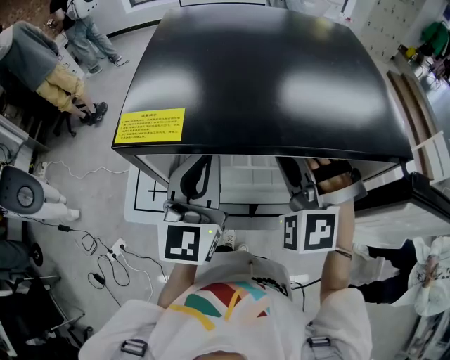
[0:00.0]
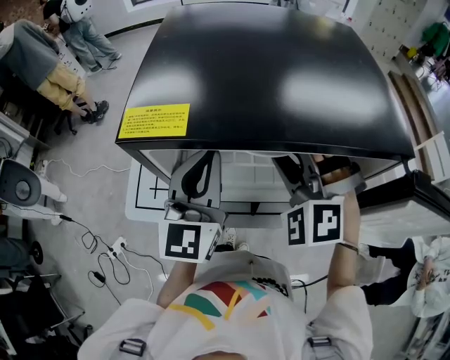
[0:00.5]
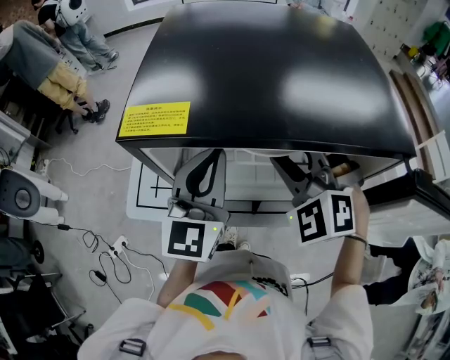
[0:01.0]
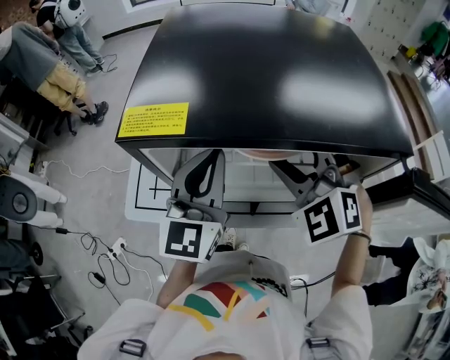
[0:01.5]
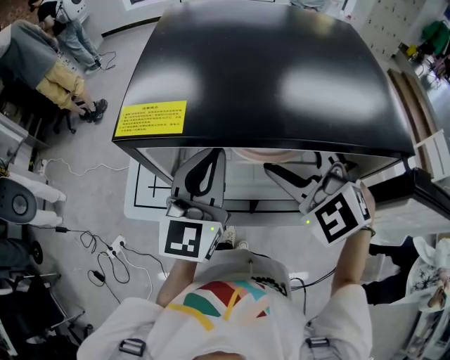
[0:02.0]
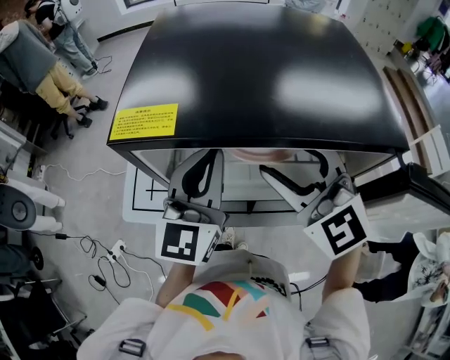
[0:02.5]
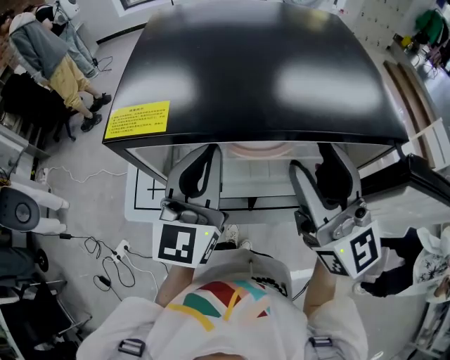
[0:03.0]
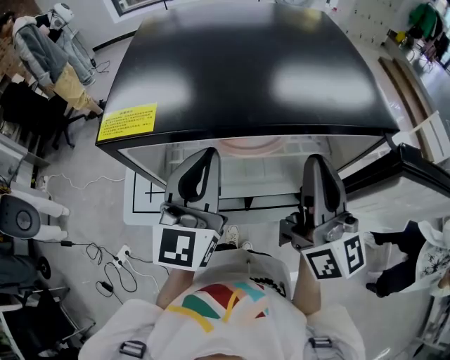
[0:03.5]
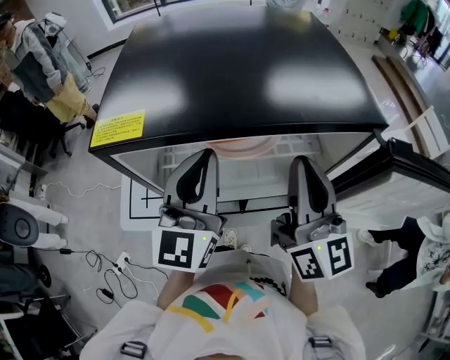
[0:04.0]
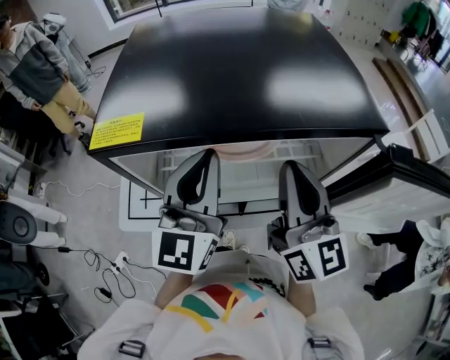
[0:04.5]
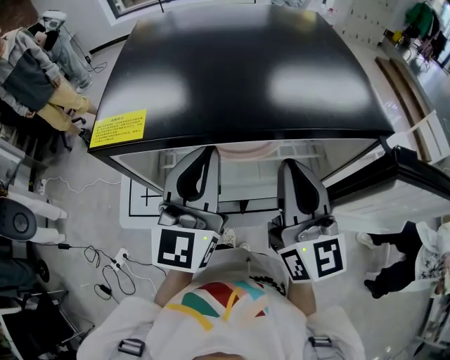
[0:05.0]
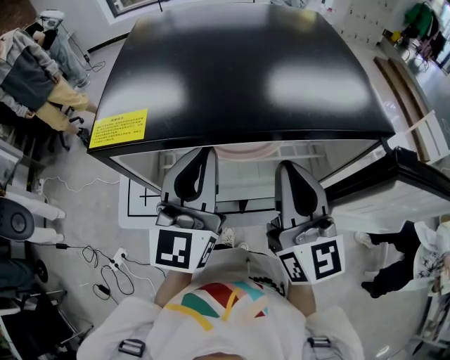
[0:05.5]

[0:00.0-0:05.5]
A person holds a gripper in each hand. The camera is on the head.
0:00.0 to 0:02.0: The right gripper changes its angle by approximately 40 degrees, and opens.
0:02.0 to 0:03.5: The right gripper travels to the right, upward and backward by roughly 15 cm, points its fingers approximately 40 degrees further upward, and closes its fingers.
0:03.5 to 0:05.5: The grippers make only small movements.

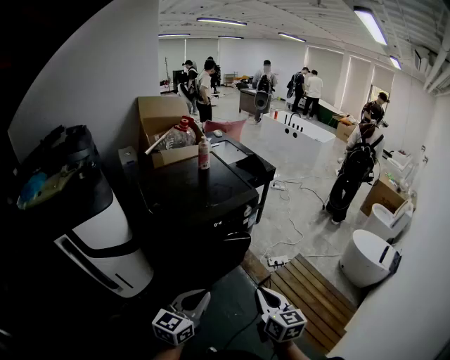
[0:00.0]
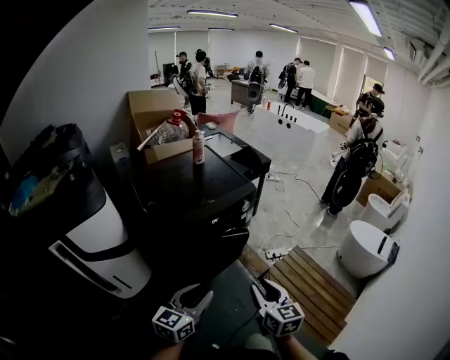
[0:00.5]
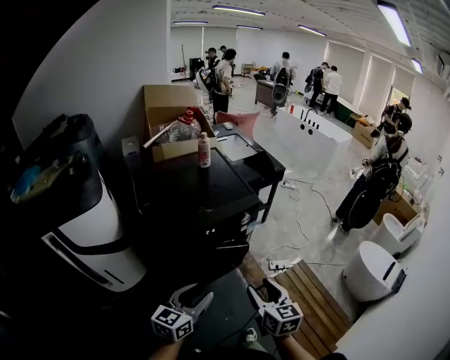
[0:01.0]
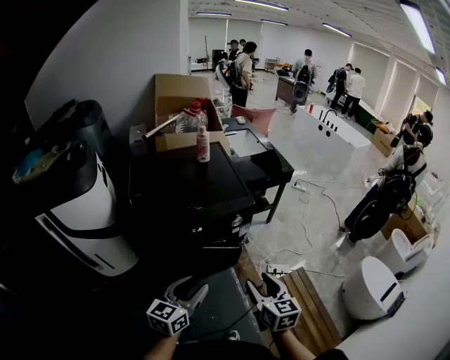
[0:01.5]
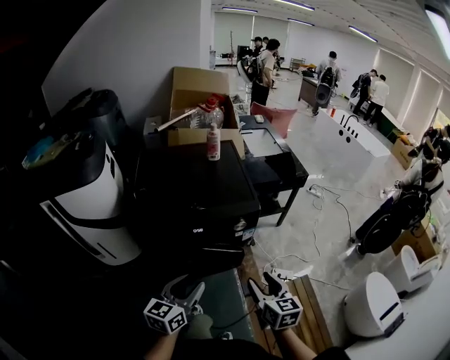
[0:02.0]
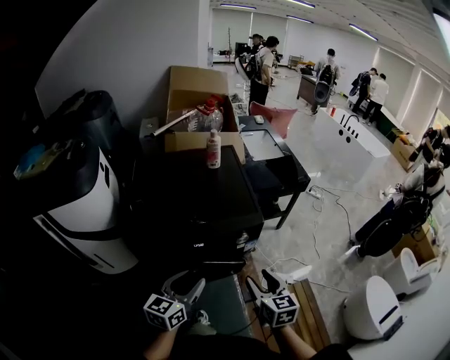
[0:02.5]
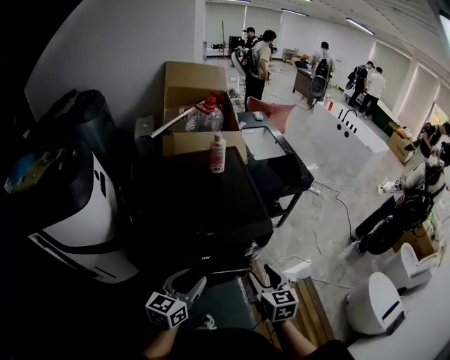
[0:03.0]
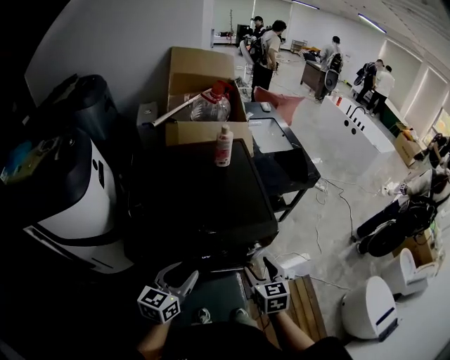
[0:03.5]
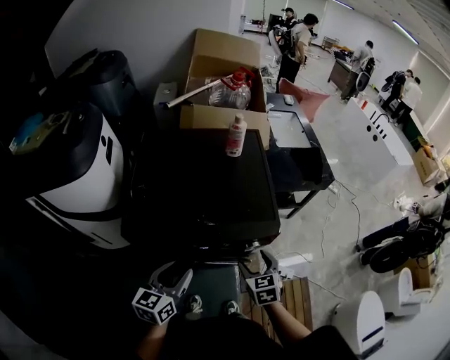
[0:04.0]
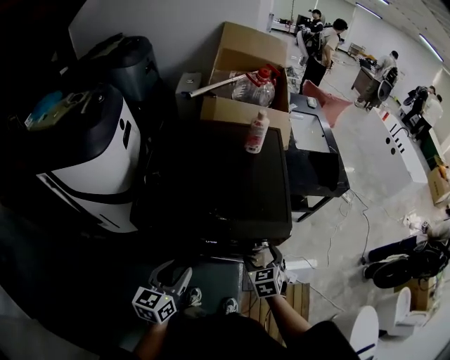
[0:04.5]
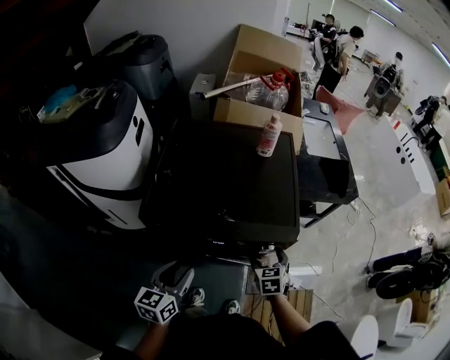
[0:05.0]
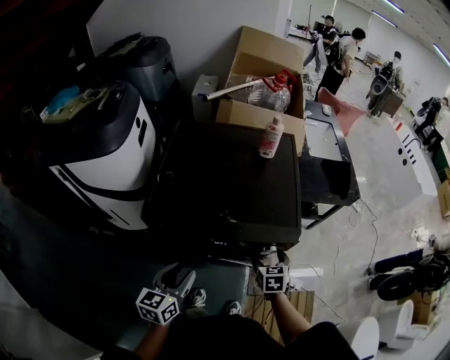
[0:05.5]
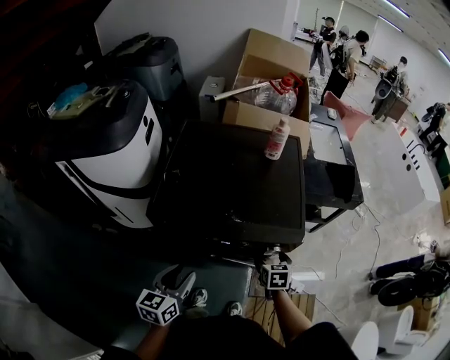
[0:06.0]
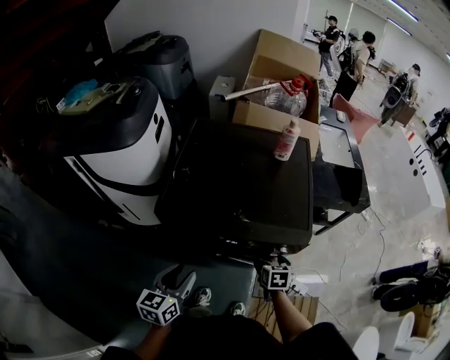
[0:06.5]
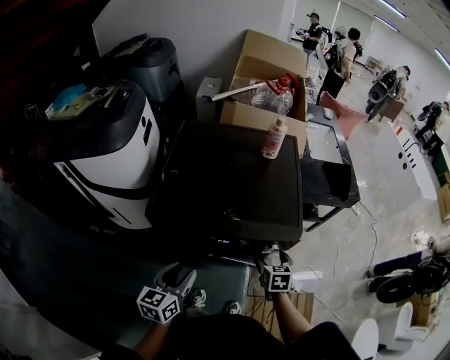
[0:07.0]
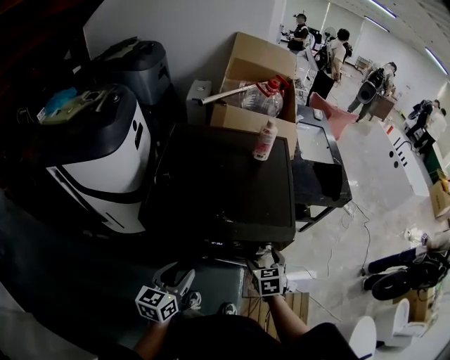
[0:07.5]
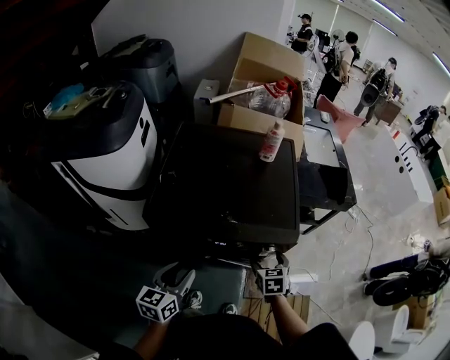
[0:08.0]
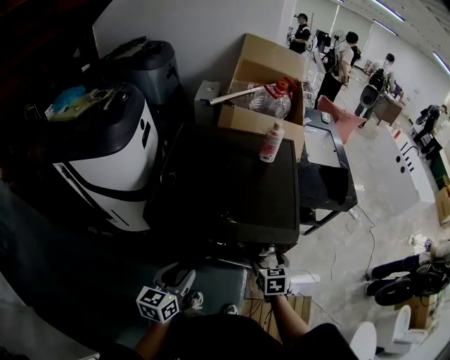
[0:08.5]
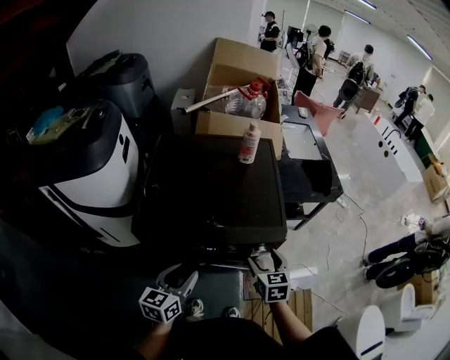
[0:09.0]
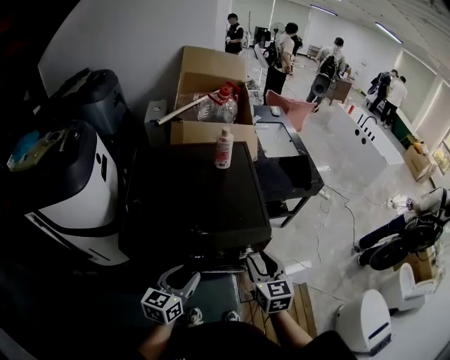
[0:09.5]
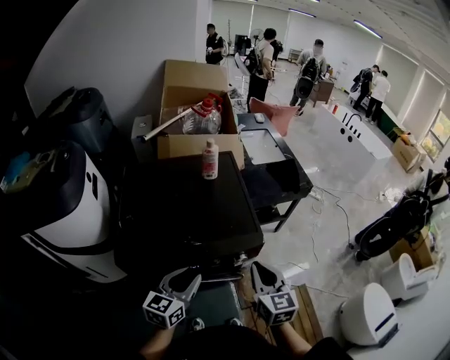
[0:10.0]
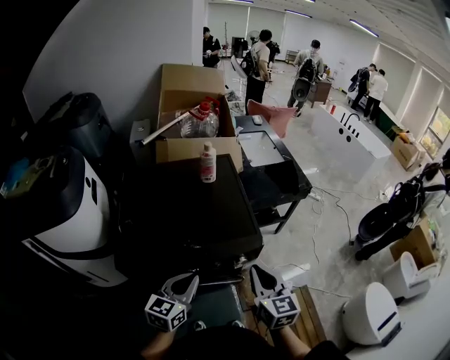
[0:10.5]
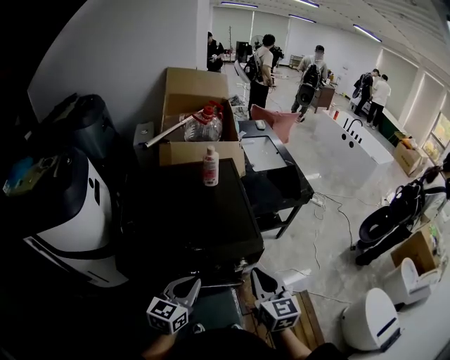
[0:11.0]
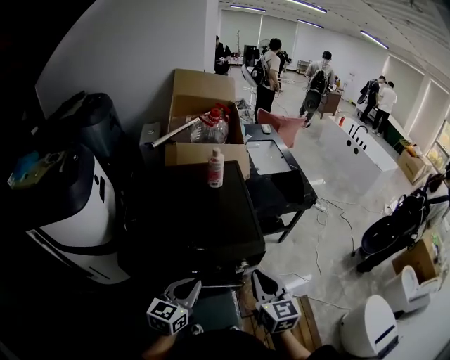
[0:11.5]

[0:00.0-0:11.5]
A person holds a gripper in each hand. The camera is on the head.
0:00.0 to 0:02.0: The grippers both shift forward and to the right by roughly 25 cm. The left gripper changes its angle by some 30 degrees, and opens. Meanwhile the right gripper changes its angle by some 20 degrees, and opens up.
0:02.0 to 0:04.0: The left gripper travels forward and to the left by roughly 20 cm. The right gripper moves forward, approximately 25 cm, and turns by approximately 30 degrees.
0:04.0 to 0:06.0: The right gripper is displaced downward by about 10 cm, while the left gripper heads backward, covering approximately 5 cm.
0:06.0 to 0:07.5: The right gripper is displaced upward by about 5 cm.
0:07.5 to 0:09.5: The left gripper heads to the right and forward, covering some 10 cm; the right gripper travels upward by approximately 15 cm, swivels approximately 20 degrees, and closes up.
0:09.5 to 0:11.5: The right gripper moves about 5 cm, and closes up. Meanwhile the left gripper closes.

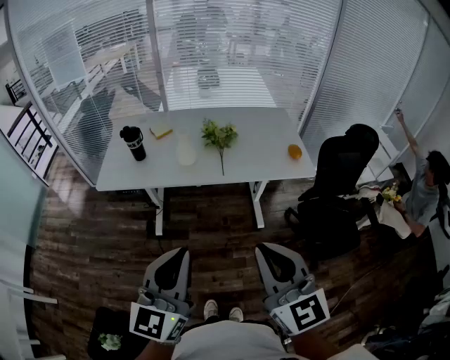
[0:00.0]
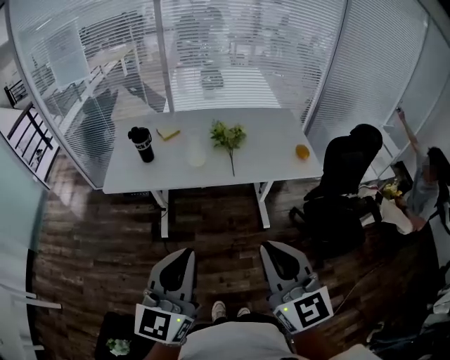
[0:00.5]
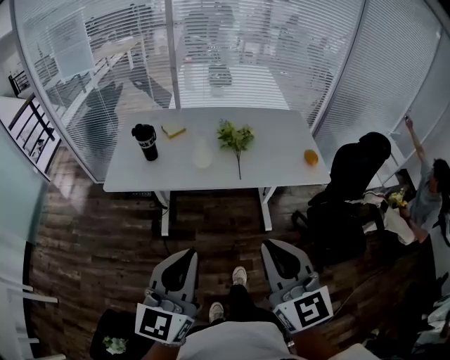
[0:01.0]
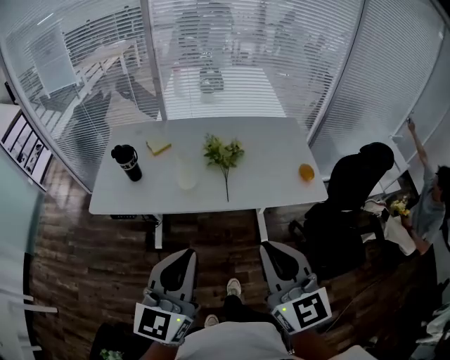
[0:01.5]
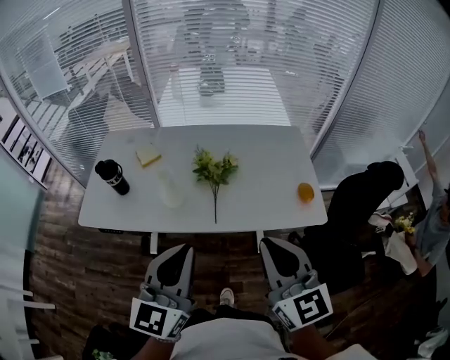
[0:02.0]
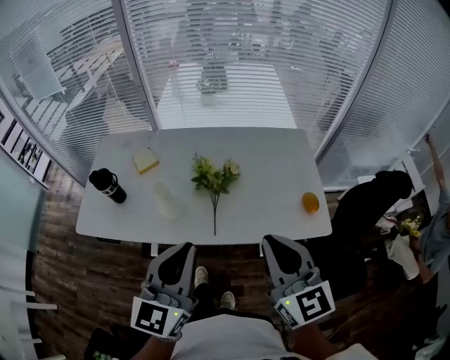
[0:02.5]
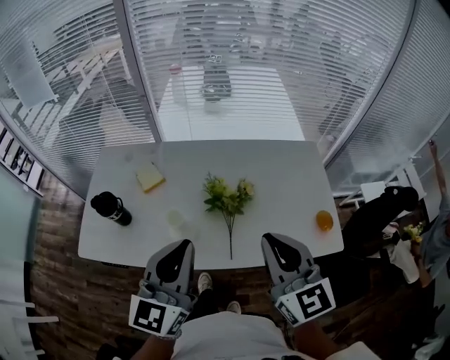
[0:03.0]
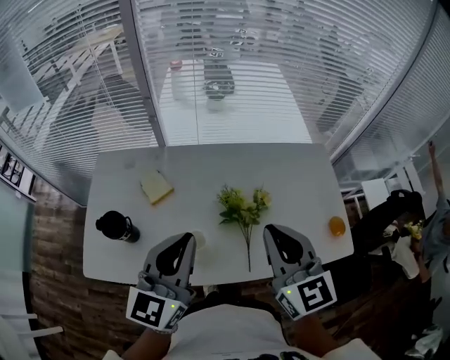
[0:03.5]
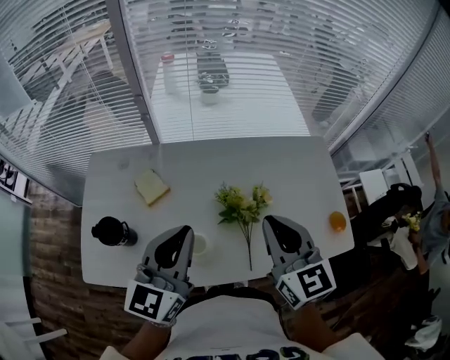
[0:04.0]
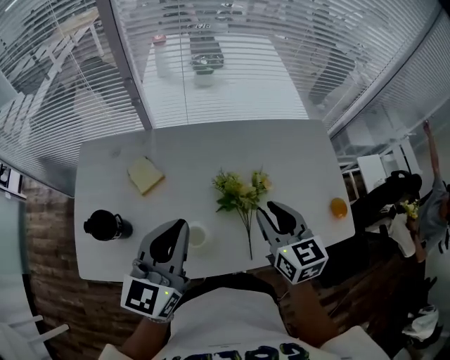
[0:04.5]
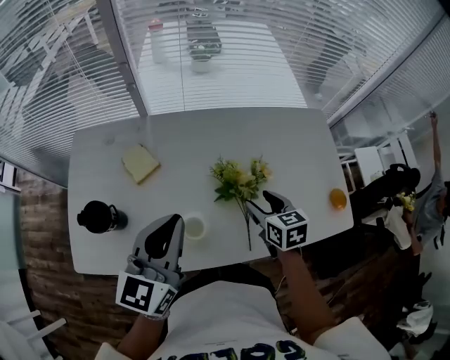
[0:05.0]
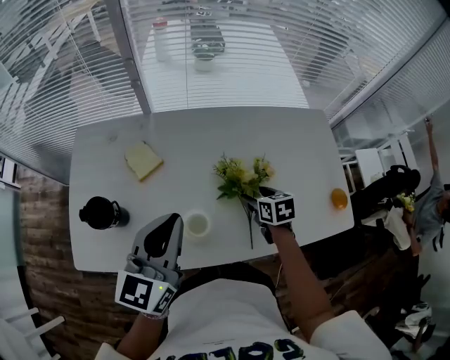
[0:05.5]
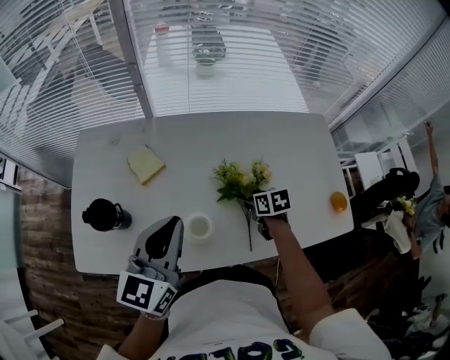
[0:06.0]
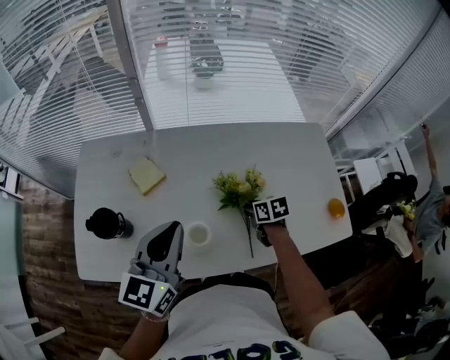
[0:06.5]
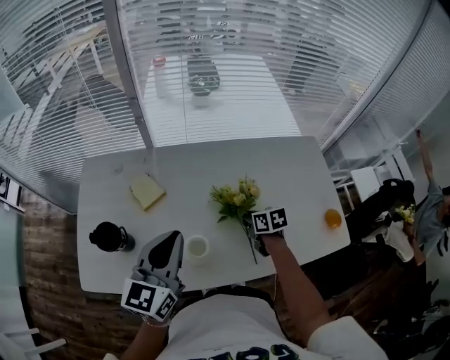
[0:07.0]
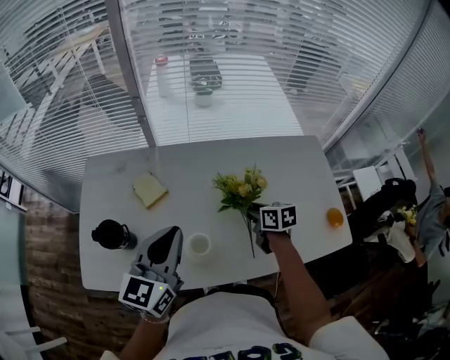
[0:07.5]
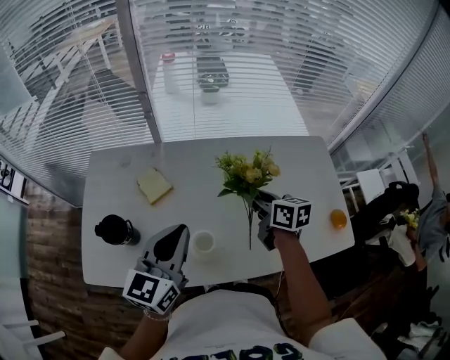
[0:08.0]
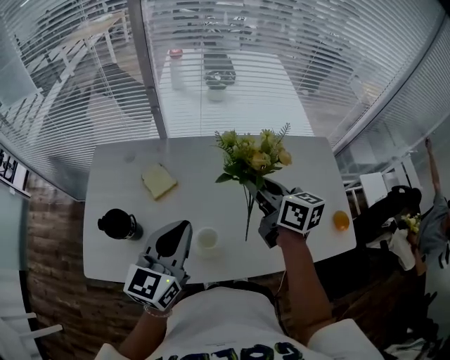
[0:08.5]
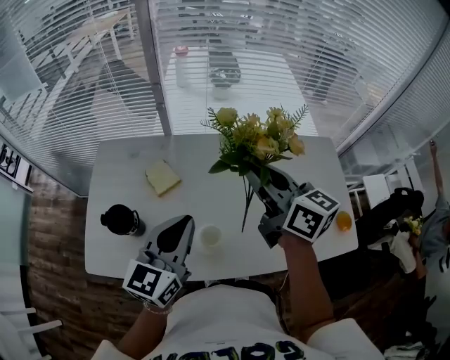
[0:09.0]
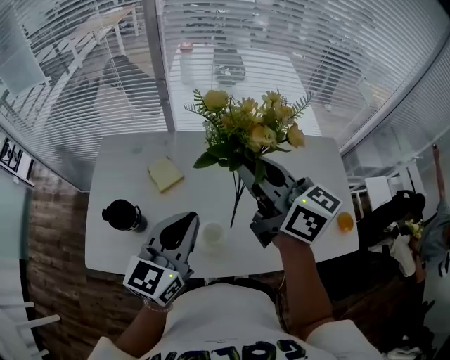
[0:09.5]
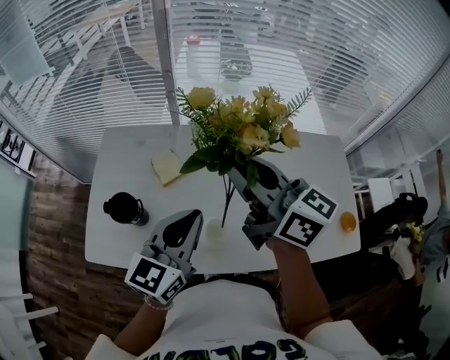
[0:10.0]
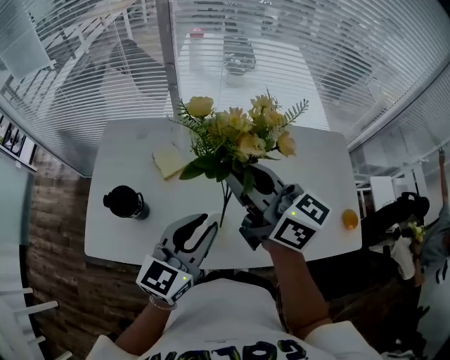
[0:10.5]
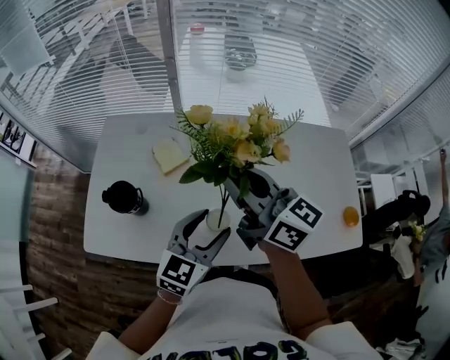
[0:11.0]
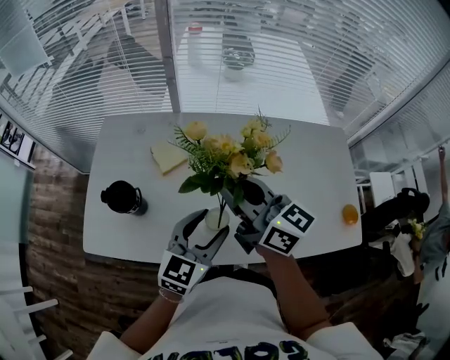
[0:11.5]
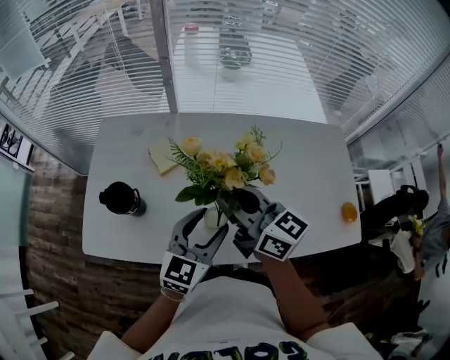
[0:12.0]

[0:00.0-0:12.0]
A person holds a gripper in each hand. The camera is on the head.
0:00.0 to 0:02.0: The two grippers go about 30 cm forward.
0:02.0 to 0:04.0: Both grippers travel together forward and to the left, some 30 cm.
0:04.0 to 0:06.0: The right gripper travels downward by some 30 cm, tilts its fingers approximately 40 degrees downward, and opens; the left gripper is displaced downward by roughly 5 cm.
0:06.0 to 0:08.0: The right gripper moves upward, about 15 cm, rotates about 30 degrees, and closes.
0:08.0 to 0:10.0: The right gripper travels upward and to the left by about 25 cm, and rotates roughly 30 degrees.
0:10.0 to 0:12.0: Both grippers travel together downward, about 10 cm. The left gripper opens its fingers.
